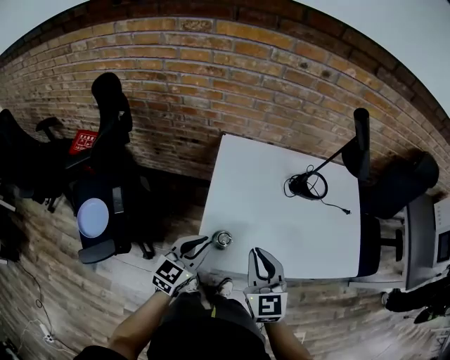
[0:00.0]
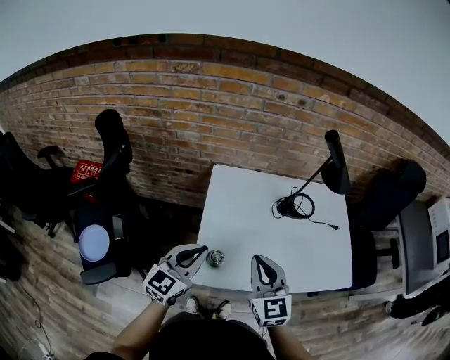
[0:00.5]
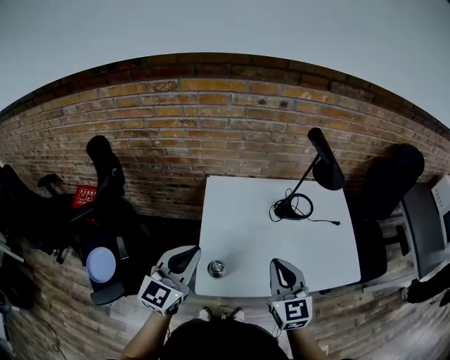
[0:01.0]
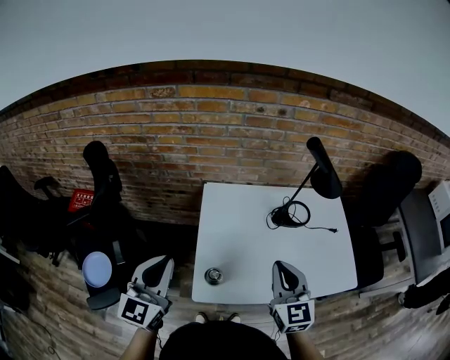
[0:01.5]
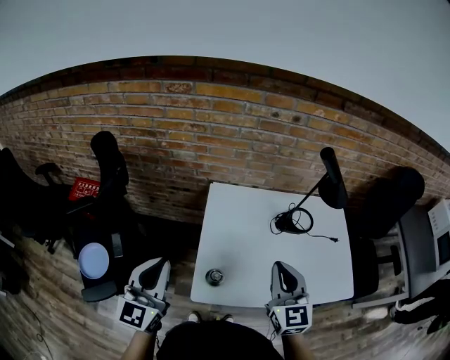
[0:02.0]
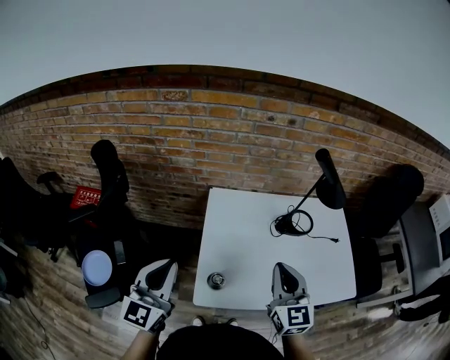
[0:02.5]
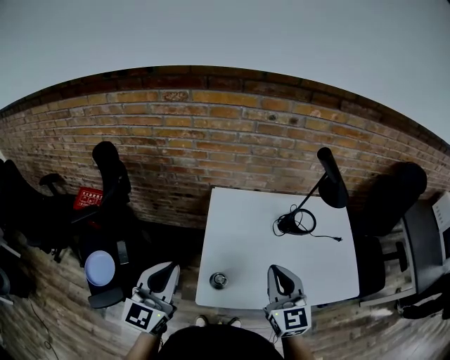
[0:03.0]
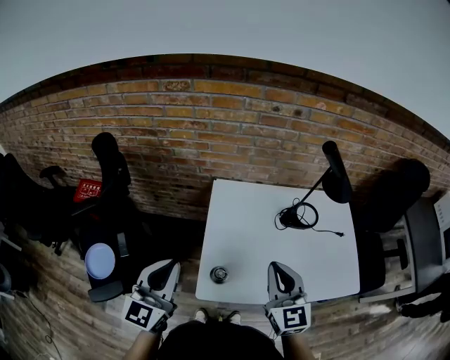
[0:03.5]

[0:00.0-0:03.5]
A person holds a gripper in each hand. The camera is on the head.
0:00.0 to 0:02.0: The right gripper is displaced upward, to the right and forward by roughly 15 cm. Meanwhile the left gripper travels upward and to the left by some 20 cm, and rotates roughly 30 degrees.
0:02.0 to 0:03.5: There are only small adjustments of the grippers.

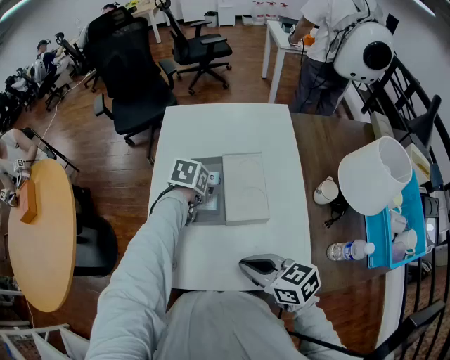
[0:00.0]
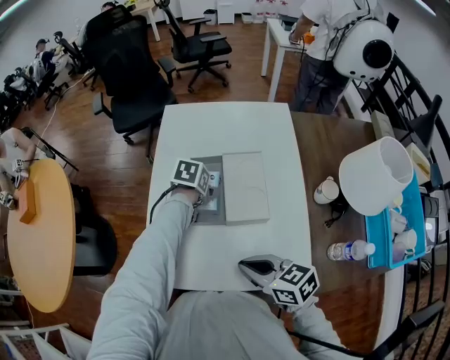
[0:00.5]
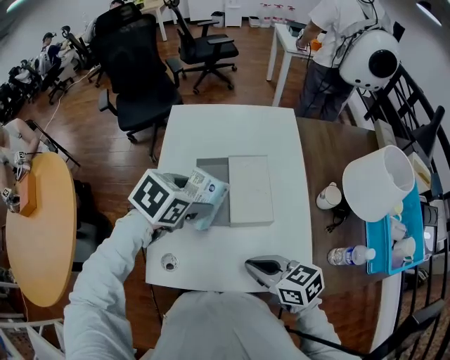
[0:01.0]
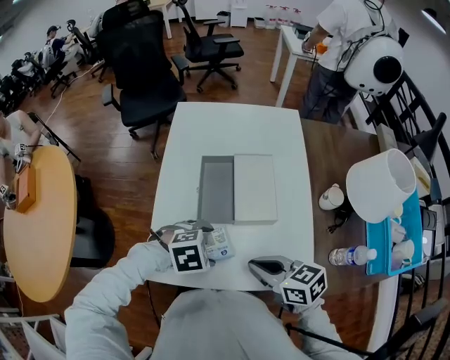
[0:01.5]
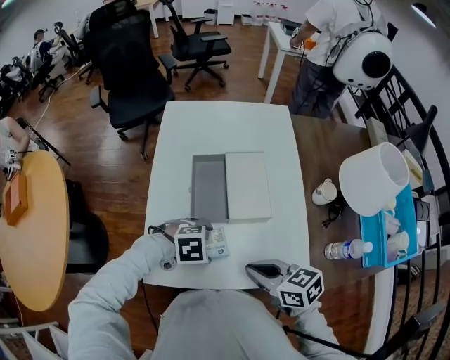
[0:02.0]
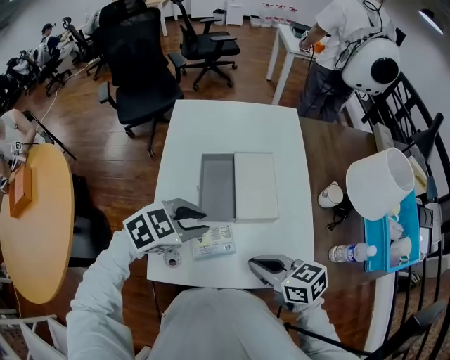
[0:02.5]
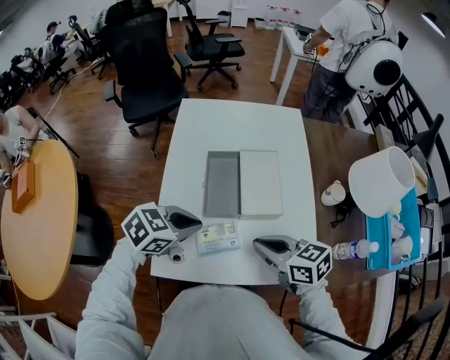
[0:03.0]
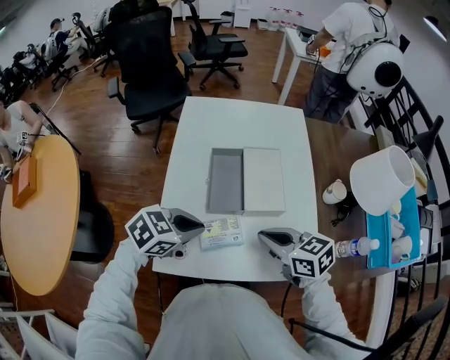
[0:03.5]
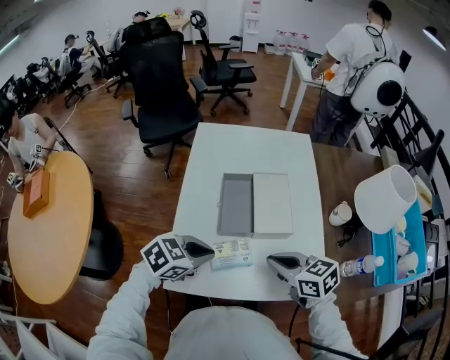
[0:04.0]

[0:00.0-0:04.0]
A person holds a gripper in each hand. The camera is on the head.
0:00.0 to 0:02.0: The left gripper moves about 10 cm upward and comes back, and rotates around the line of its fingers by approximately 70 degrees, clockwise from behind.
0:02.0 to 0:04.0: The left gripper is displaced upward by roughly 10 cm, swivels roughly 40 degrees, and closes up.

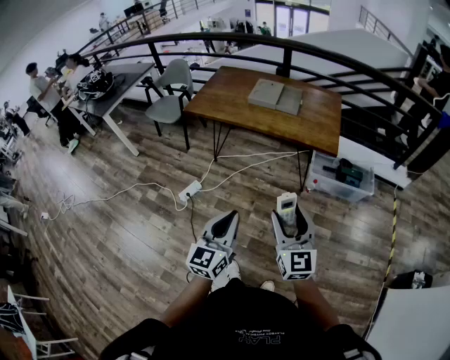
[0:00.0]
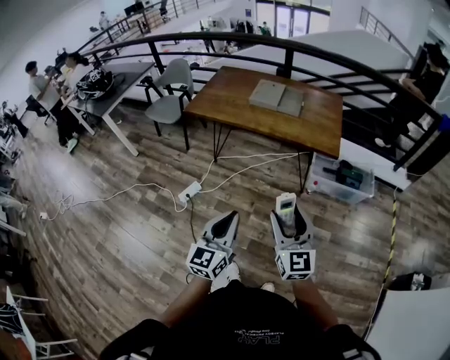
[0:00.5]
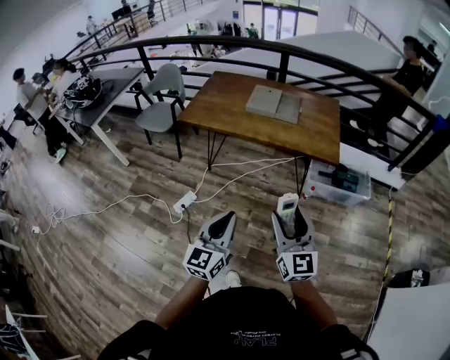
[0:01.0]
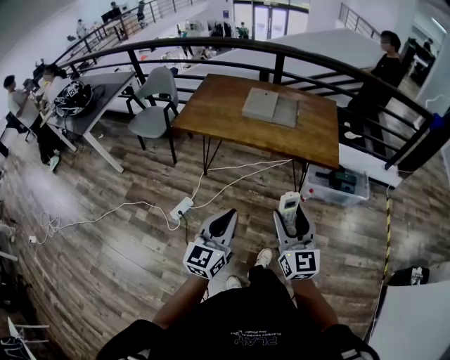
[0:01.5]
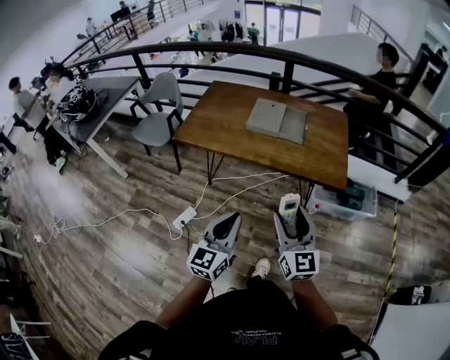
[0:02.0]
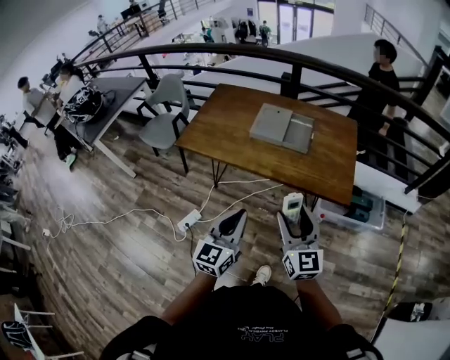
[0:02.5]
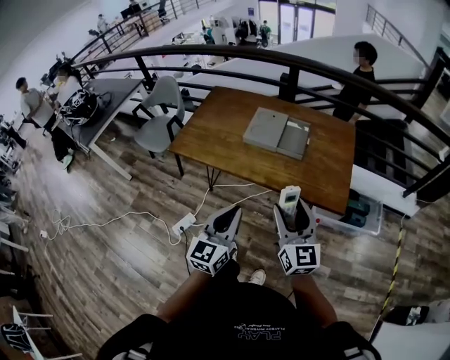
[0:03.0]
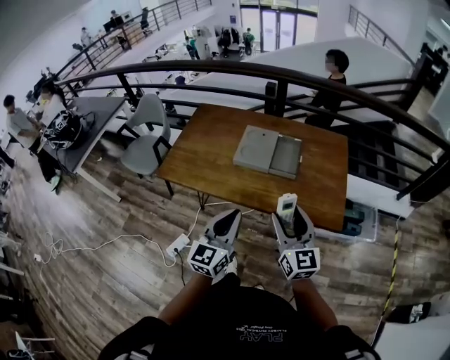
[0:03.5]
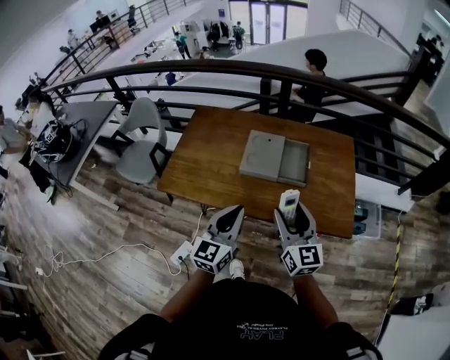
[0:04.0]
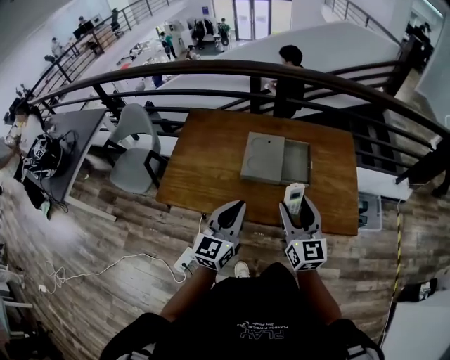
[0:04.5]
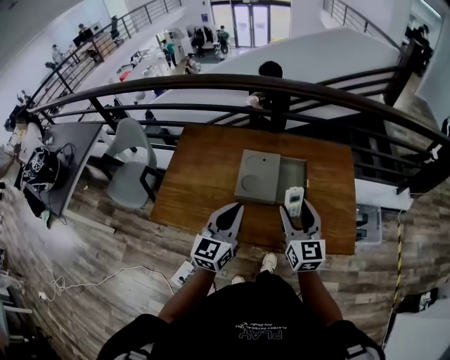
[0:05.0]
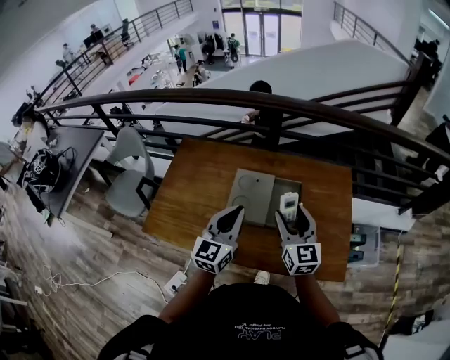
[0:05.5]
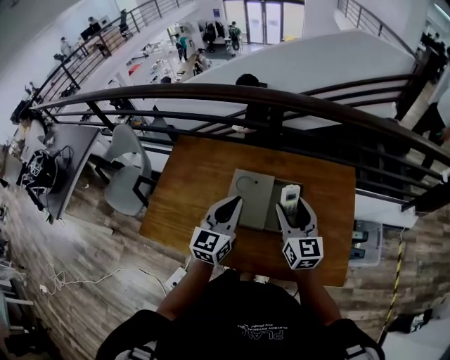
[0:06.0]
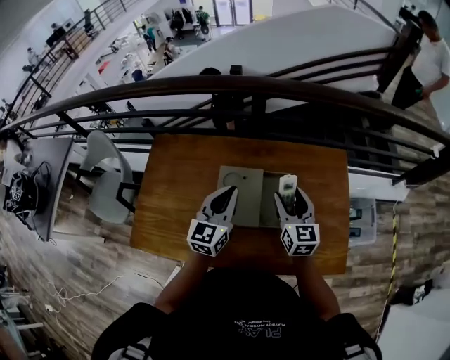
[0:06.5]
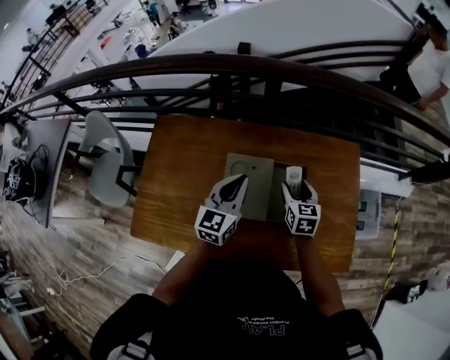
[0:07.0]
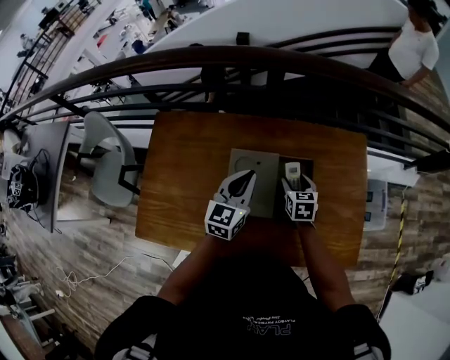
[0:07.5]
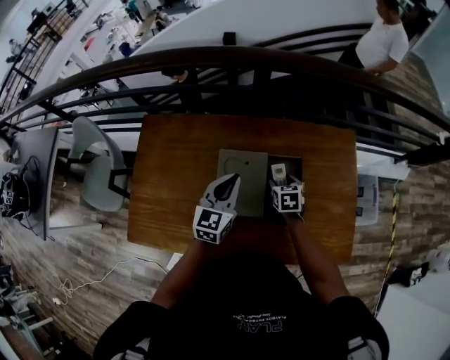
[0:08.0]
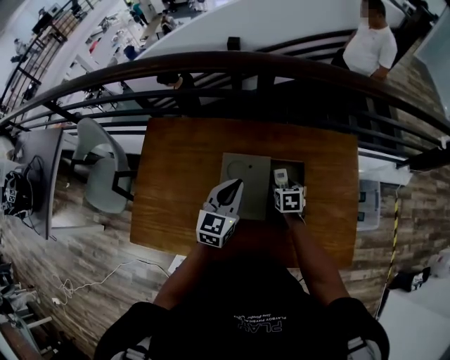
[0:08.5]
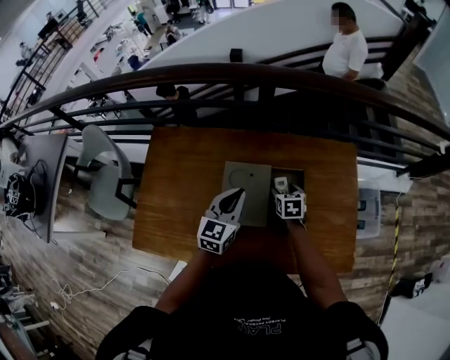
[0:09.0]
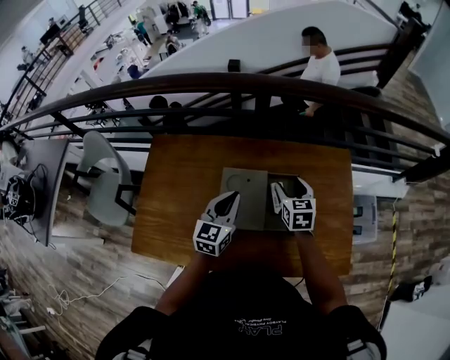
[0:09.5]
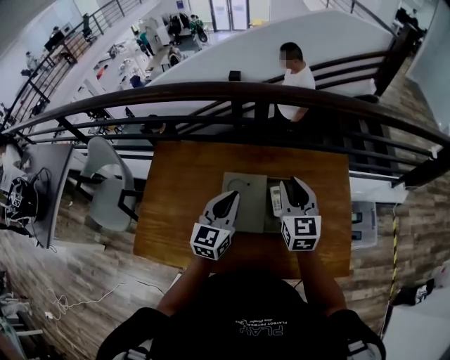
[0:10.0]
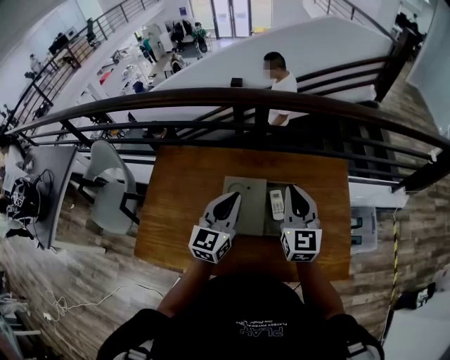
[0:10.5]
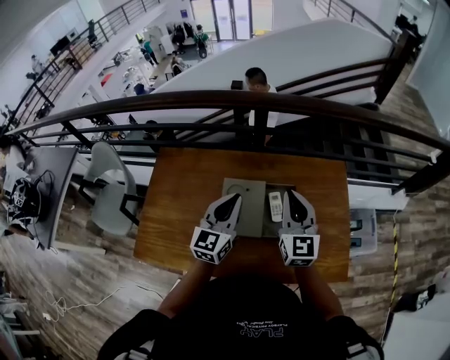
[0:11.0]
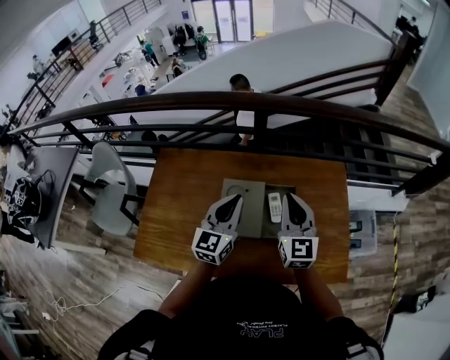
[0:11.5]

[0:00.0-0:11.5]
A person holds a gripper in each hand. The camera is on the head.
0:00.0 to 0:02.0: The two grippers go about 20 cm forward.
0:02.0 to 0:04.0: The two grippers go some 30 cm forward.
0:04.0 to 0:06.0: Both grippers move forward, approximately 25 cm.
0:06.0 to 0:07.5: The left gripper travels forward and downward by about 15 cm, while the right gripper heads downward and forward, covering approximately 25 cm, and tips its fingers downward by roughly 40 degrees.
0:07.5 to 0:09.5: The right gripper heads upward, covering about 10 cm.
0:09.5 to 0:11.5: The right gripper shifts roughly 15 cm upward and backward, points its fingers some 30 degrees further upward, and closes its fingers. Meanwhile the left gripper is displaced upward by approximately 10 cm.

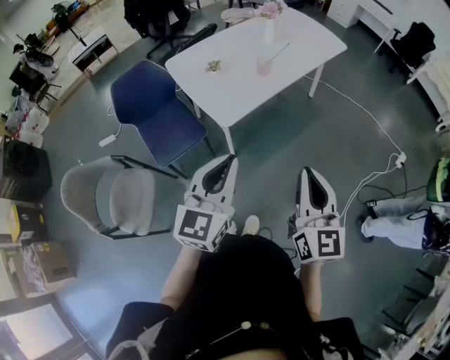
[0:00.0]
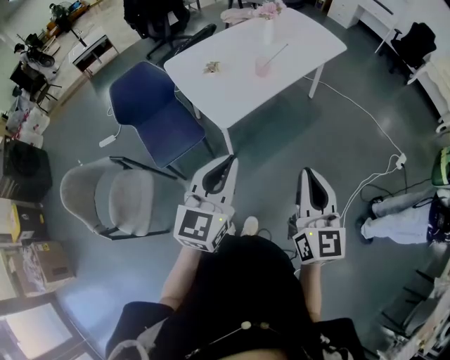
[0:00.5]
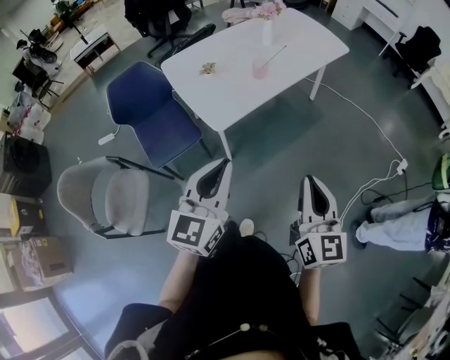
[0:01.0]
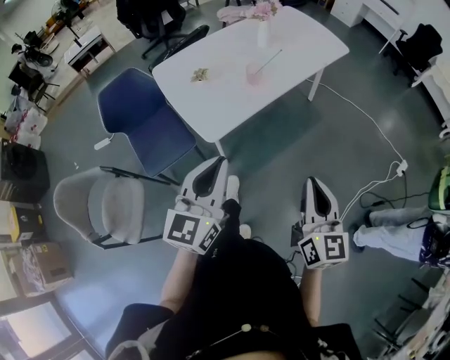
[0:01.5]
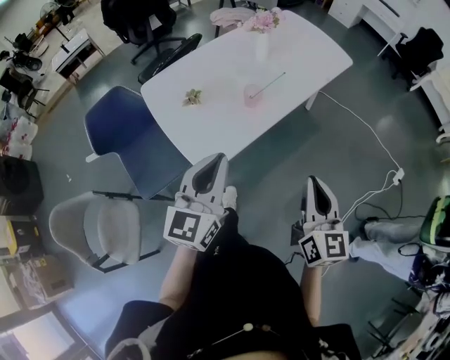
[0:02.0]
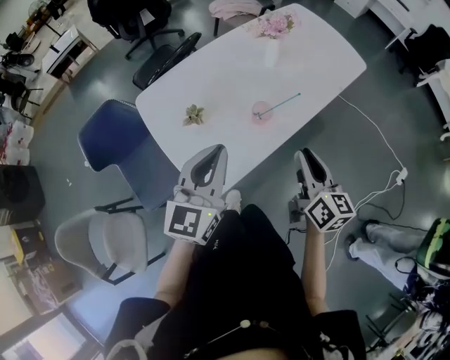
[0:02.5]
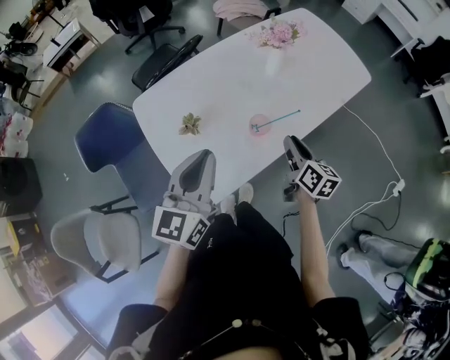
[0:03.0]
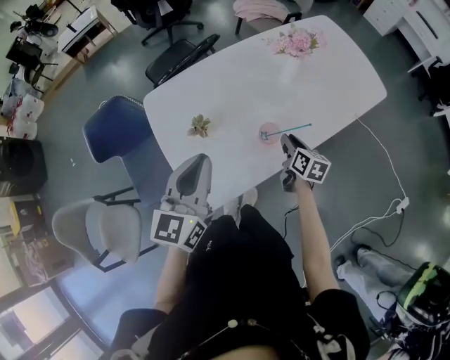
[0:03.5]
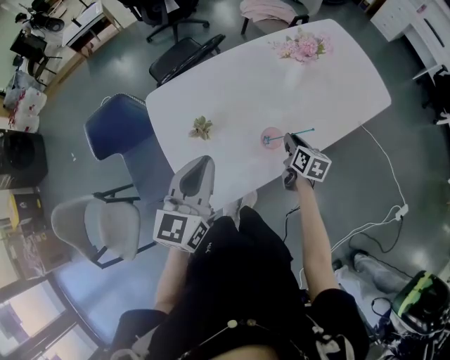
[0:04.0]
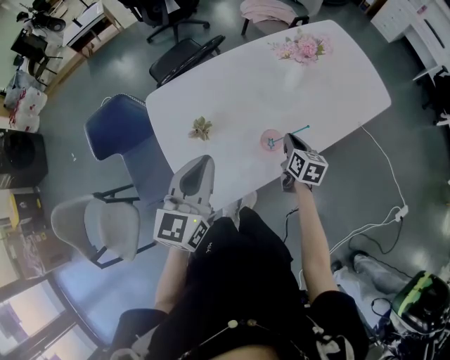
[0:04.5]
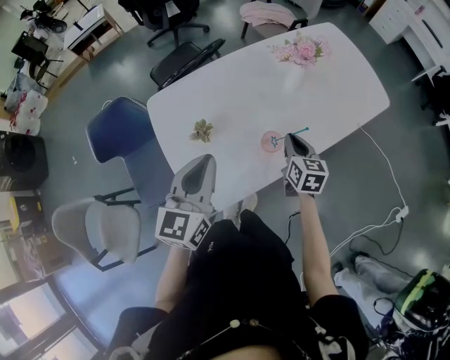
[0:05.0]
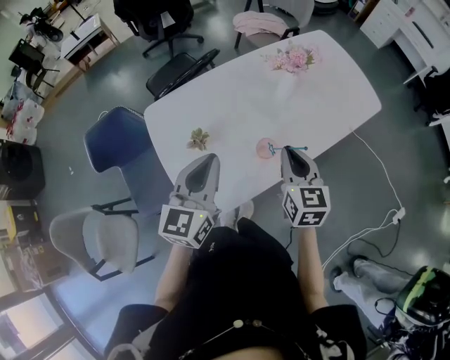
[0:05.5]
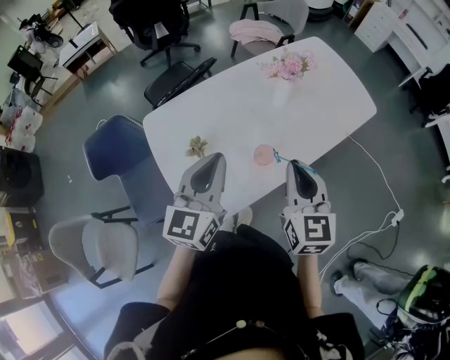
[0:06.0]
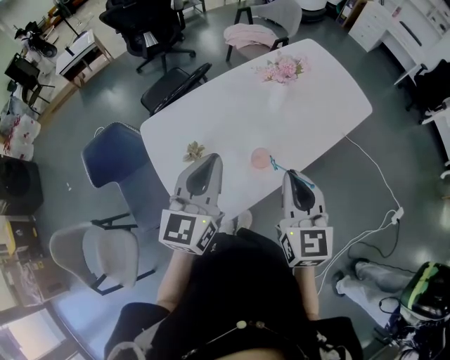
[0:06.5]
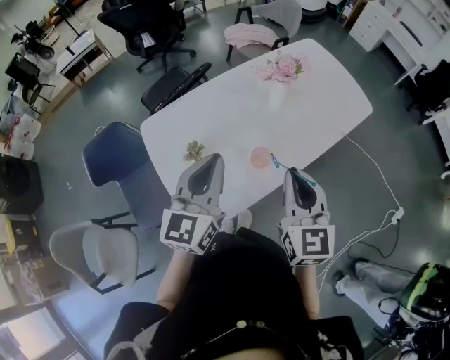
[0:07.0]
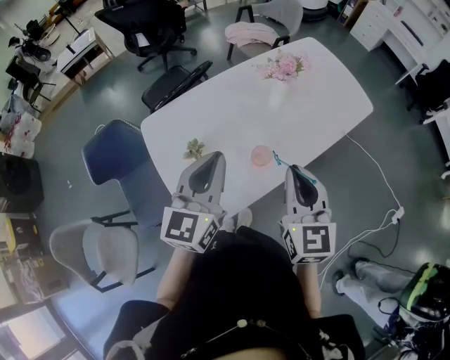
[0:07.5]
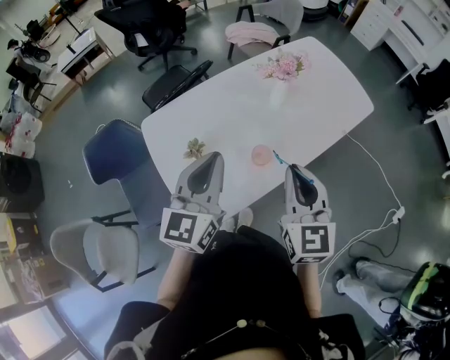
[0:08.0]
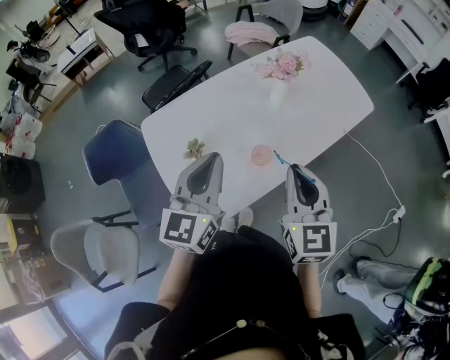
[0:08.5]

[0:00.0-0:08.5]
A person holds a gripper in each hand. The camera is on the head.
0:00.0 to 0:02.0: The grippers both shift forward by approximately 25 cm.
0:02.0 to 0:04.0: The right gripper heads forward and downward, covering some 50 cm, and changes its angle by approximately 40 degrees. Meanwhile the left gripper goes about 25 cm forward.
0:04.0 to 0:06.5: The left gripper is displaced upward by about 5 cm, while the right gripper travels upward and backward by about 30 cm, and swivels approximately 40 degrees.
0:06.5 to 0:08.5: Neither gripper changes place.
